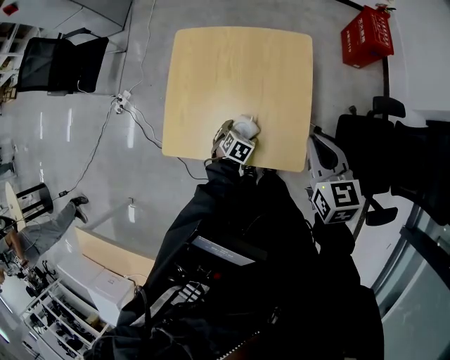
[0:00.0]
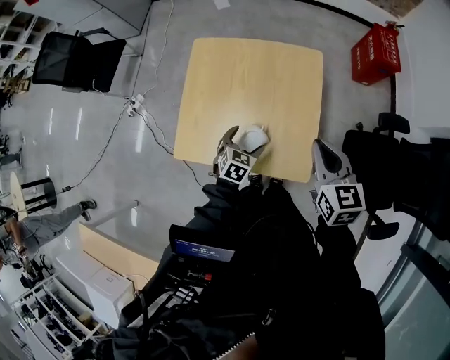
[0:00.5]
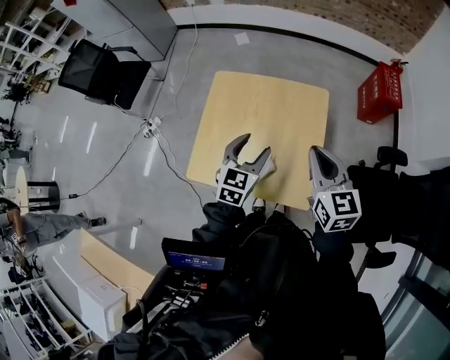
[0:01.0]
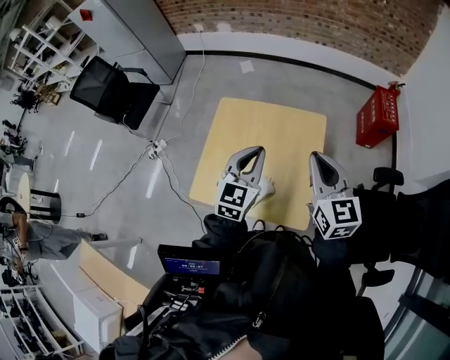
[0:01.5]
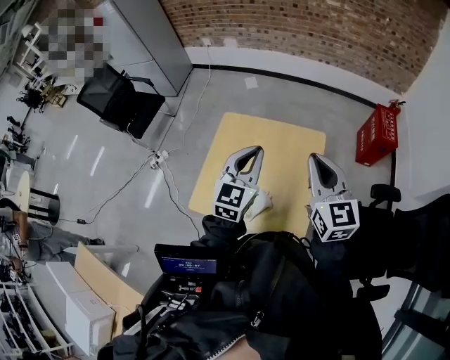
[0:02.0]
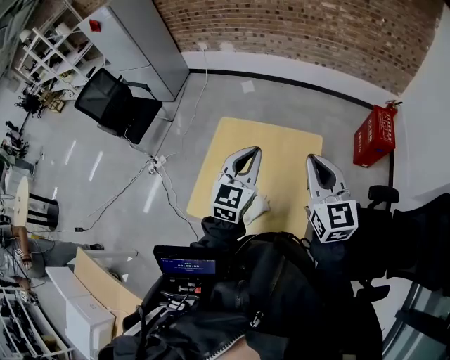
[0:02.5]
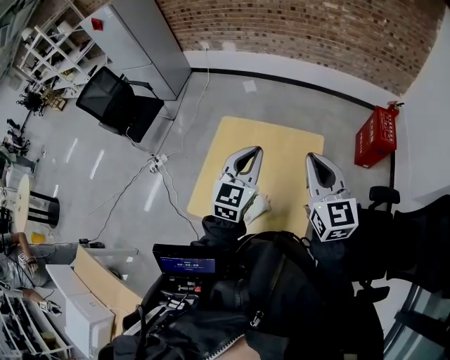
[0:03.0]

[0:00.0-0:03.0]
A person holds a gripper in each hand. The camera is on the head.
0:00.0 to 0:01.5: The right gripper moves upward and forward, about 15 cm, and turns by about 20 degrees. The left gripper shifts approximately 40 cm upward, points its fingers some 50 degrees further upward, and closes up.
0:01.5 to 0:03.0: The left gripper shifts by some 5 cm.

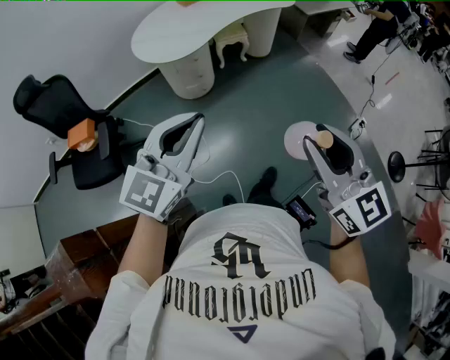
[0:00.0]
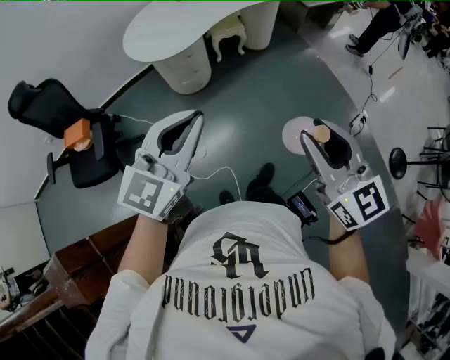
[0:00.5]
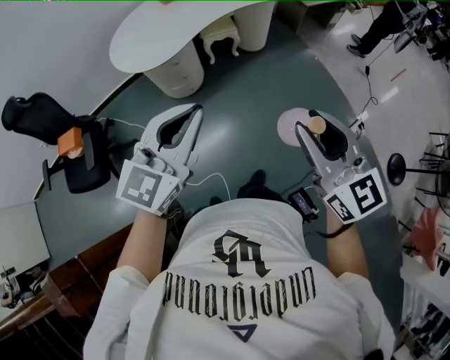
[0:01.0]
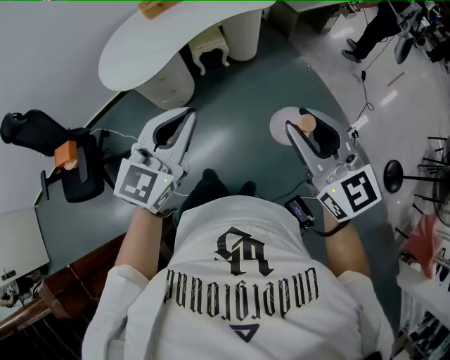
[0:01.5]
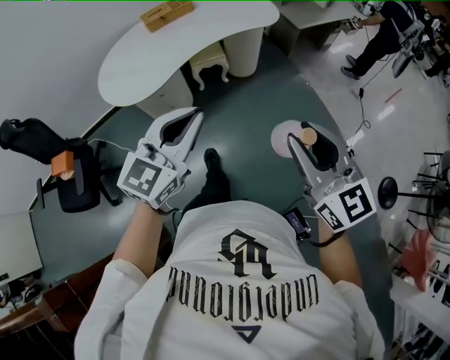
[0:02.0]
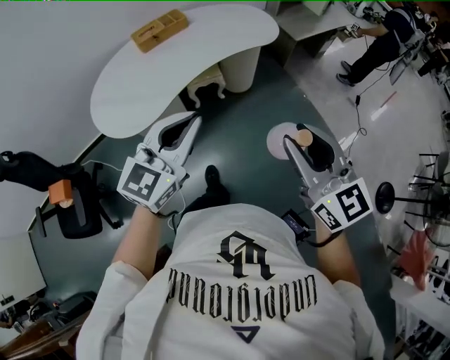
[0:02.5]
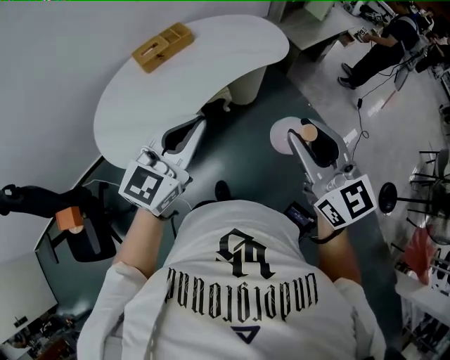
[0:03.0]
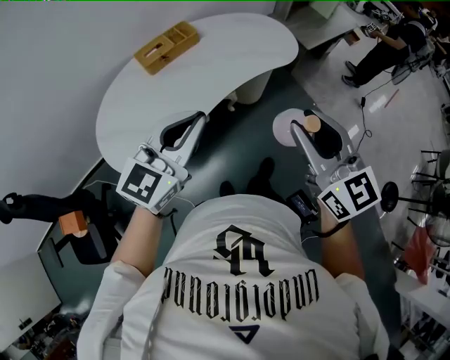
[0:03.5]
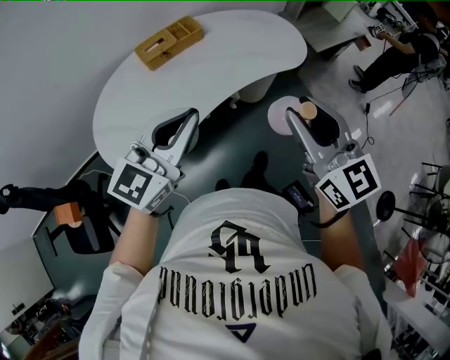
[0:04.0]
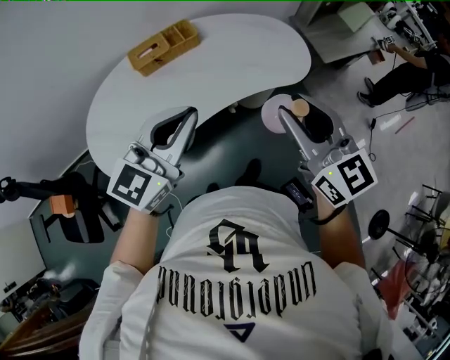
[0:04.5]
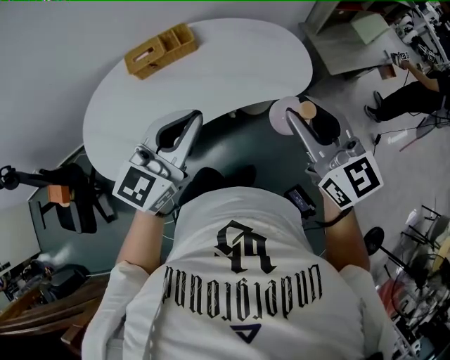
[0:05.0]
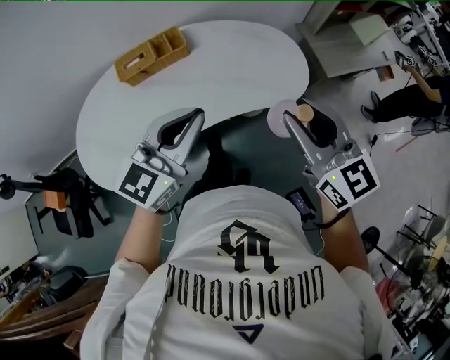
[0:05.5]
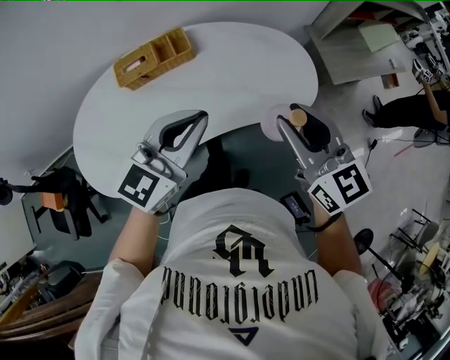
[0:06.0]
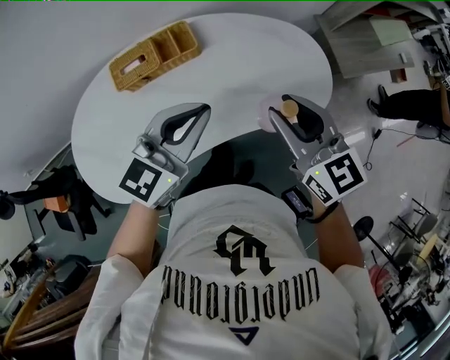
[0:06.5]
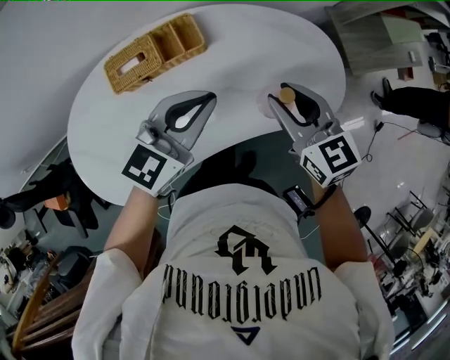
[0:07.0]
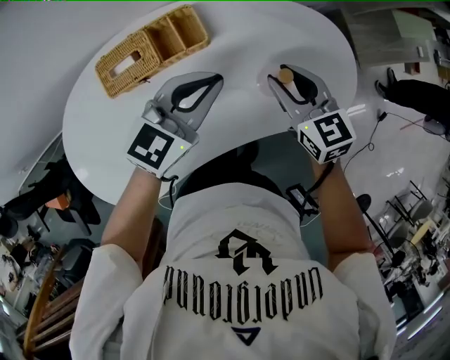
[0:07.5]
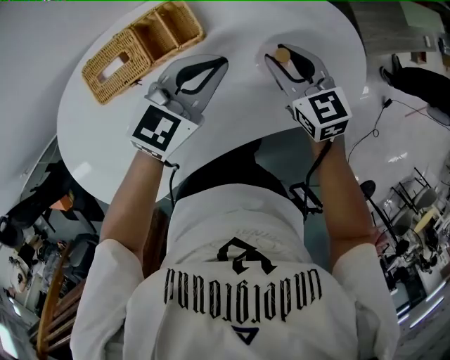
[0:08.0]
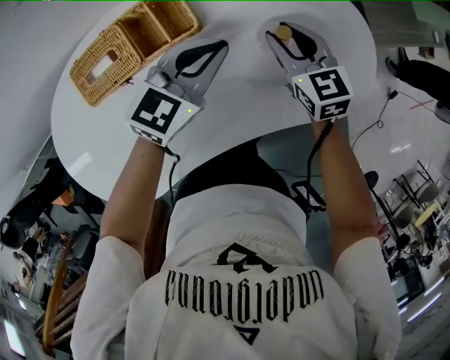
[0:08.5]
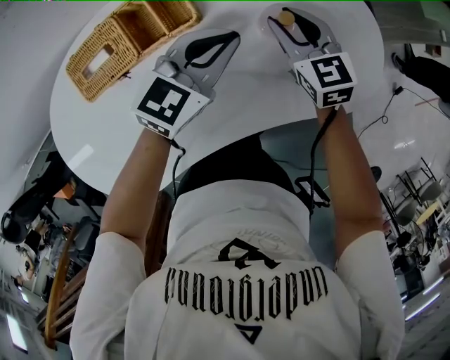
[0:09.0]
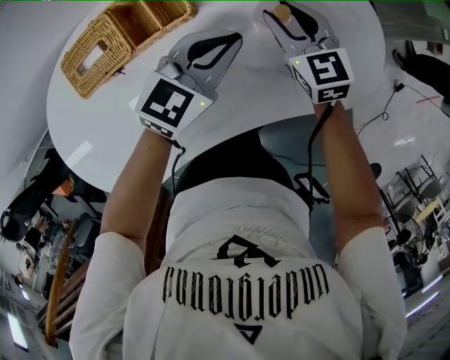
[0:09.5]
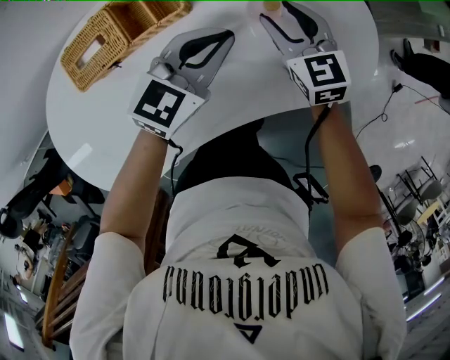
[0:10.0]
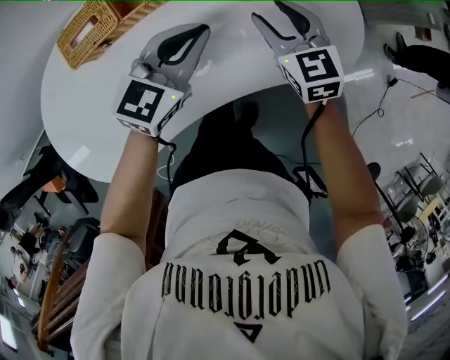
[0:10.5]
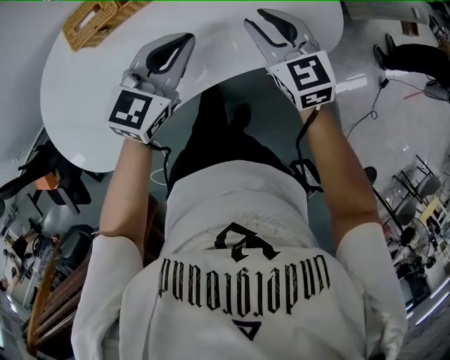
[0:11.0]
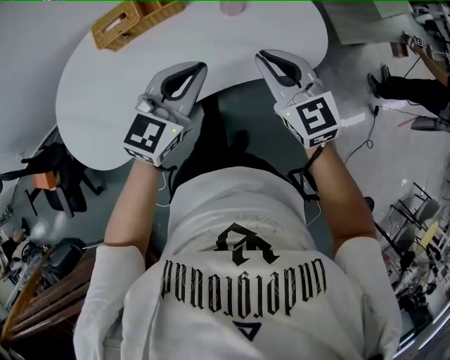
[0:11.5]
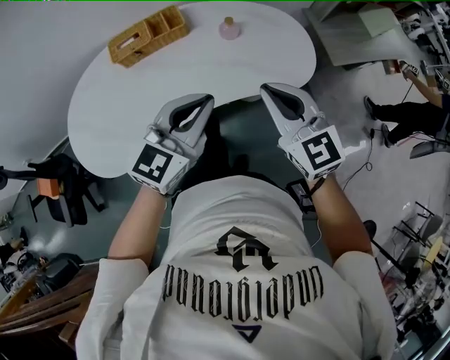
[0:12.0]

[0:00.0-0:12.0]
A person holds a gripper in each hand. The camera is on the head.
0:00.0 to 0:02.0: The grippers both shift forward and to the right by roughly 35 cm.
0:02.0 to 0:04.0: Both grippers are carried forward and to the left, roughly 40 cm.
0:04.0 to 0:06.0: The right gripper heads forward, covering some 30 cm. Meanwhile the left gripper travels forward and to the right by about 30 cm.
0:06.0 to 0:08.0: The left gripper is displaced forward and downward by some 35 cm. The right gripper moves downward and forward, approximately 40 cm, and turns by approximately 20 degrees.
0:08.0 to 0:10.0: Both grippers move downward, approximately 5 cm.
0:10.0 to 0:12.0: Both grippers move backward and upward, some 40 cm. The right gripper swivels some 20 degrees, and closes its fingers.

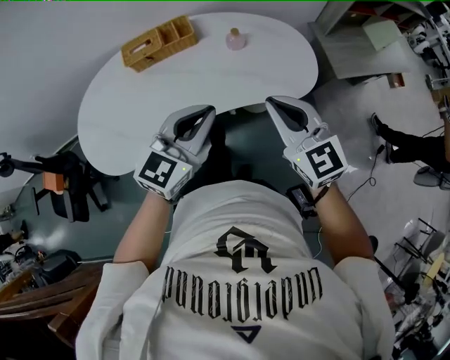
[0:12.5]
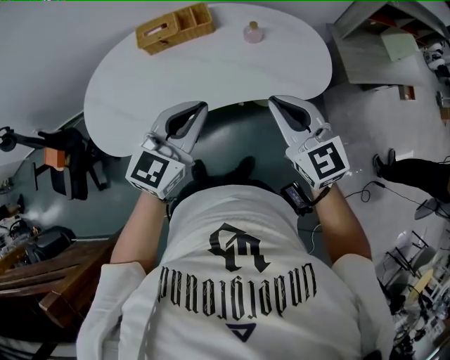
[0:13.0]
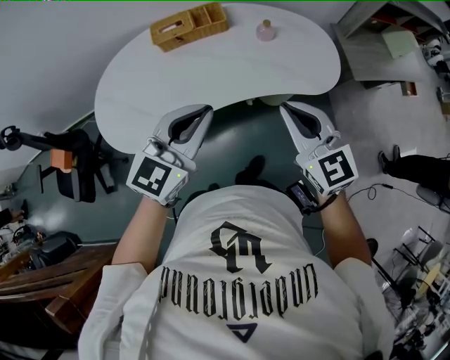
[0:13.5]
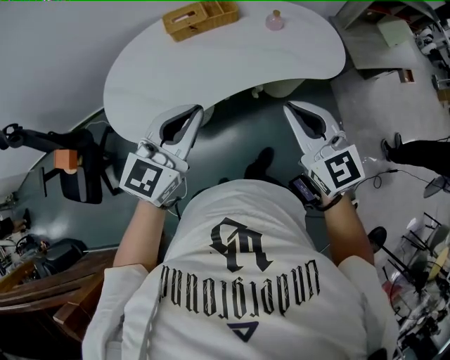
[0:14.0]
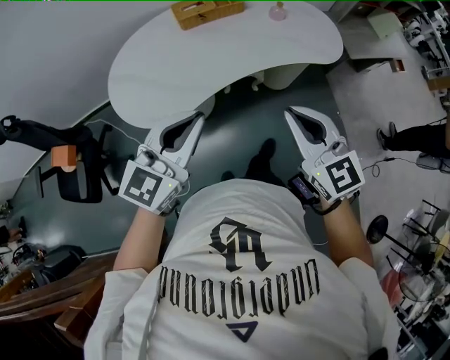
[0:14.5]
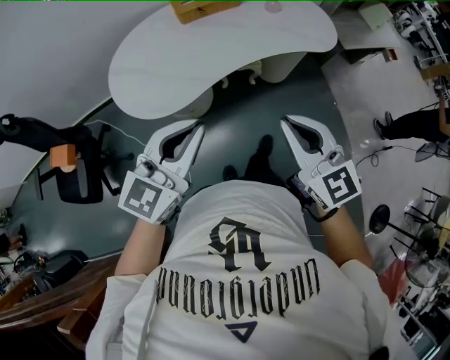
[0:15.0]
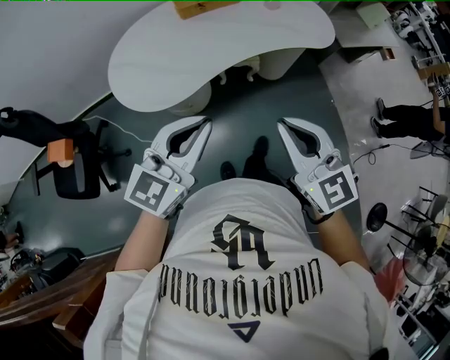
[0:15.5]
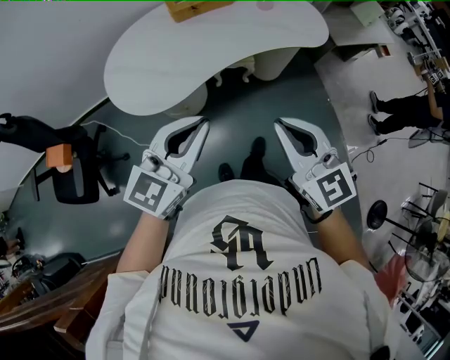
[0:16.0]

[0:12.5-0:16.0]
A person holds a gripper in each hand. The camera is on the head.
0:12.5 to 0:14.5: The right gripper moves backward and to the left, some 30 cm, while the left gripper goes some 35 cm to the left and backward.
0:14.5 to 0:16.0: The grippers both shift backward by approximately 10 cm.

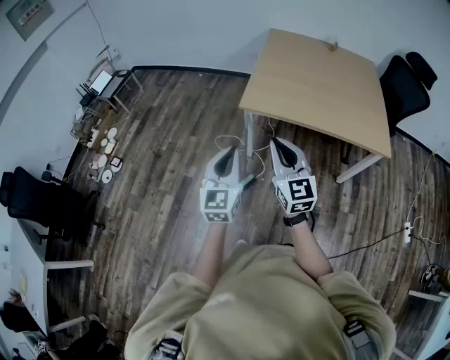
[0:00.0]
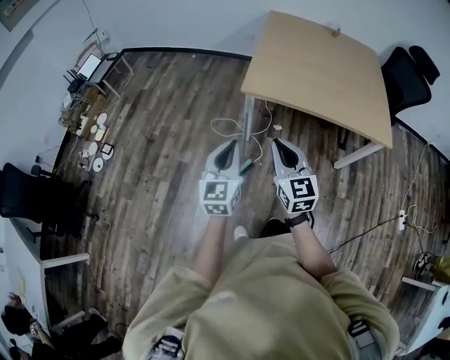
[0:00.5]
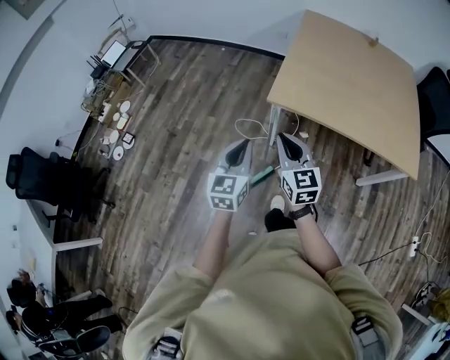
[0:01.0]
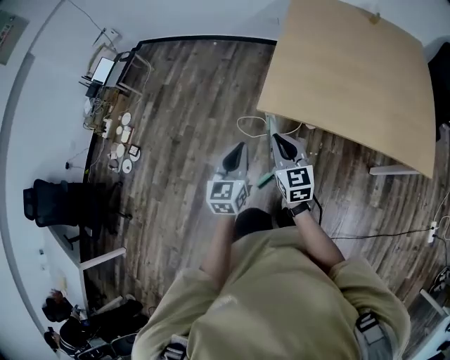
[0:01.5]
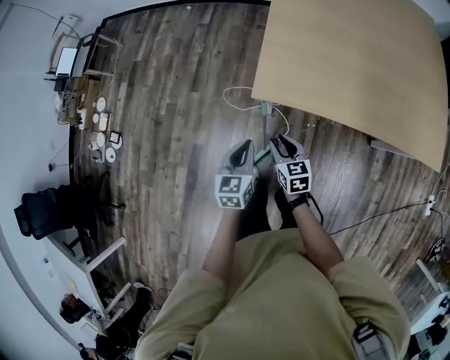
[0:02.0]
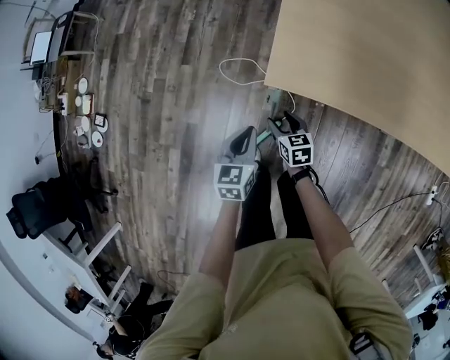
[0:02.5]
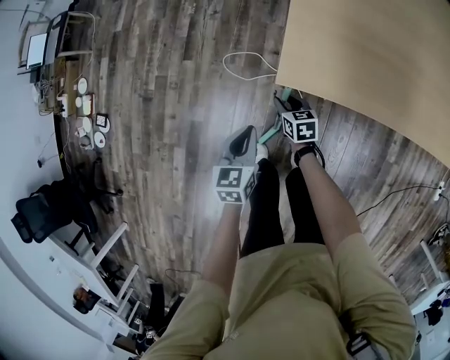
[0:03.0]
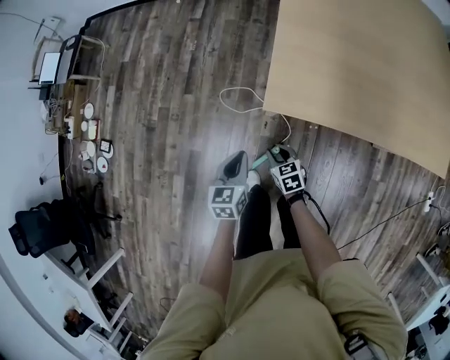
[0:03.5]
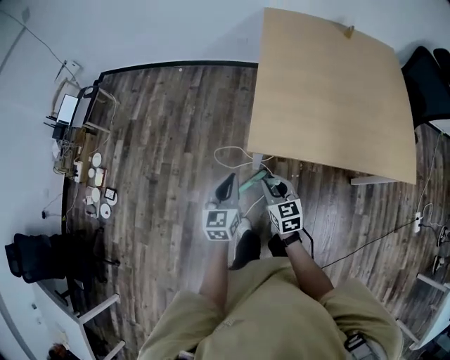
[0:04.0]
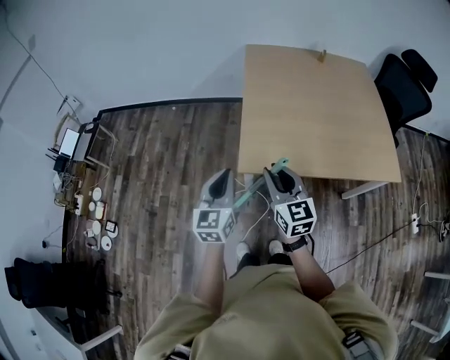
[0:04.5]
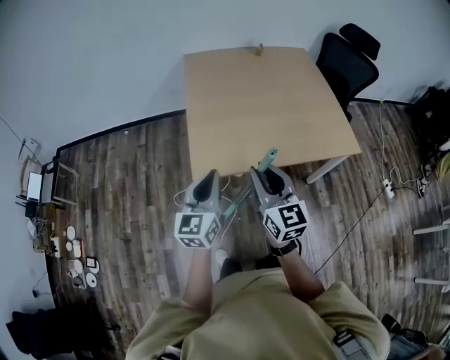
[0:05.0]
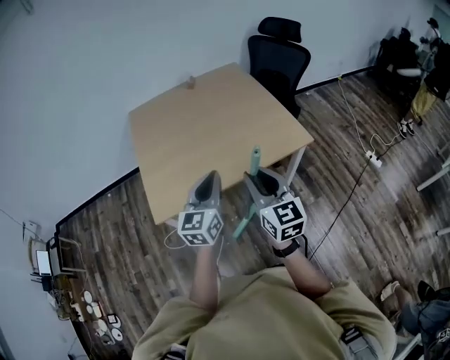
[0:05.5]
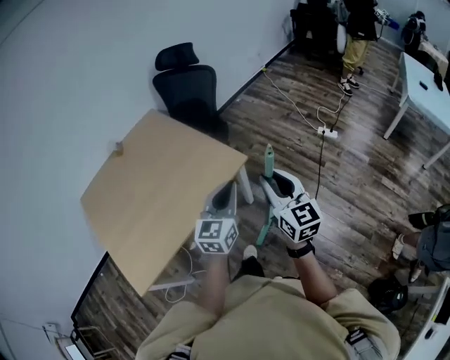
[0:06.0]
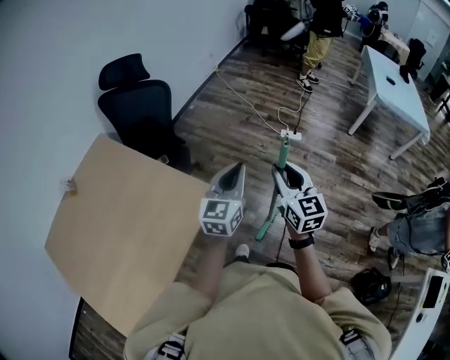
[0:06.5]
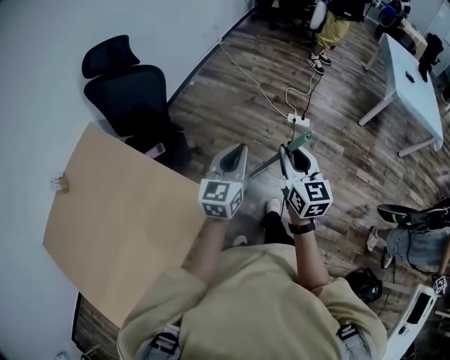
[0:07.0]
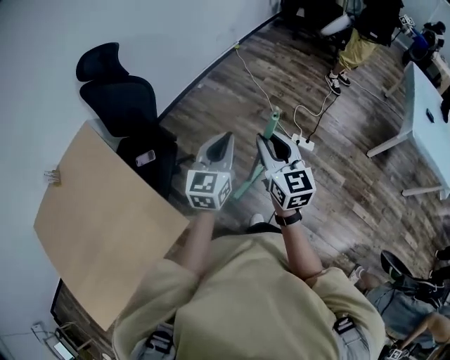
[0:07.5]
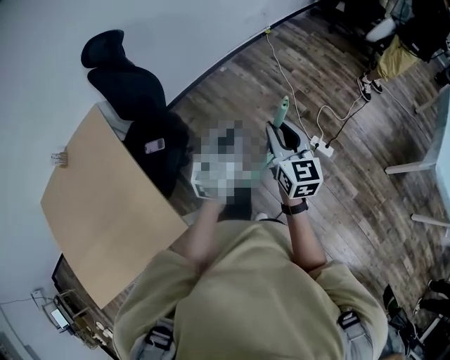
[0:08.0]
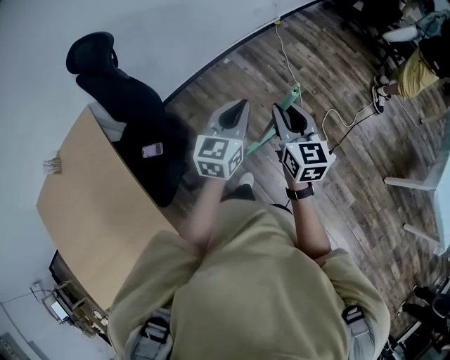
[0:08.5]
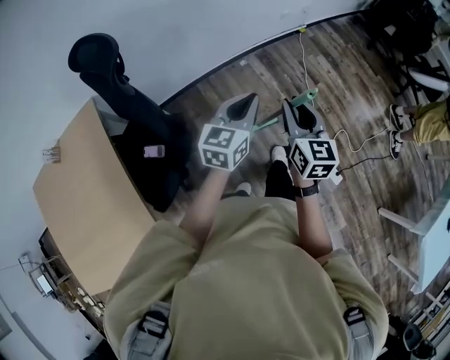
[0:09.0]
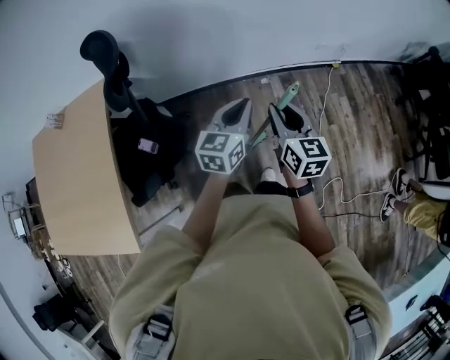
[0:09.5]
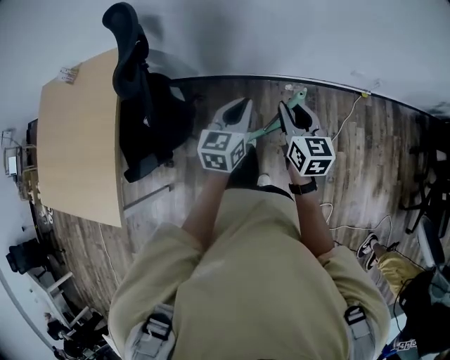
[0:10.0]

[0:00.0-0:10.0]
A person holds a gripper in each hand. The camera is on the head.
0:00.0 to 0:02.0: The left gripper goes approximately 50 cm forward and downward, and changes its angle by some 30 degrees. The right gripper travels downward and forward by some 50 cm, and tips its fingers downward by some 40 degrees.
0:02.0 to 0:04.0: The right gripper goes downward and returns, approximately 25 cm each way, while the left gripper moves upward and to the left, roughly 10 cm.
0:04.0 to 0:06.0: Both grippers are carried some 80 cm. The left gripper changes its angle by about 70 degrees, while the right gripper changes its angle by approximately 70 degrees.
0:06.0 to 0:08.0: The pair of grippers is taken forward, roughly 80 cm.
0:08.0 to 0:10.0: Both grippers are carried about 60 cm. The right gripper swivels roughly 40 degrees. Meanwhile the left gripper changes its angle by about 50 degrees.
